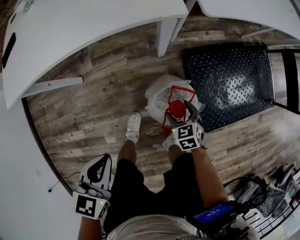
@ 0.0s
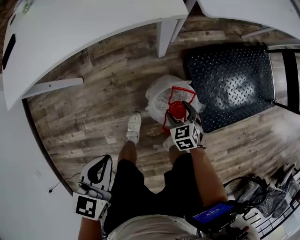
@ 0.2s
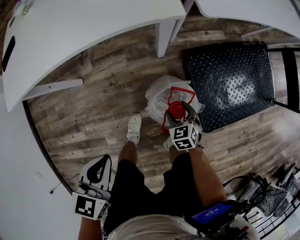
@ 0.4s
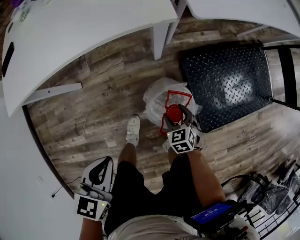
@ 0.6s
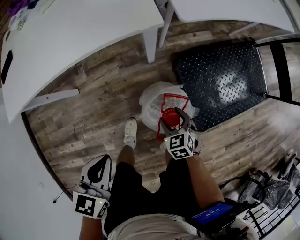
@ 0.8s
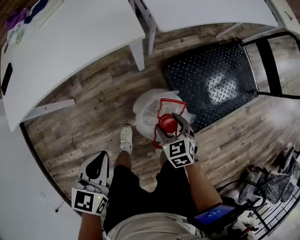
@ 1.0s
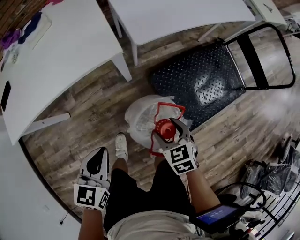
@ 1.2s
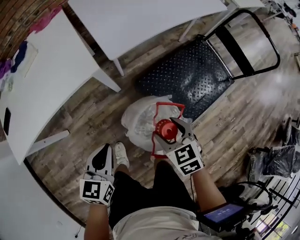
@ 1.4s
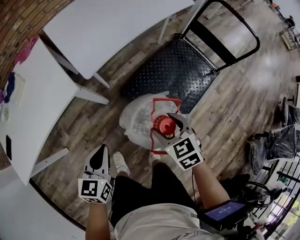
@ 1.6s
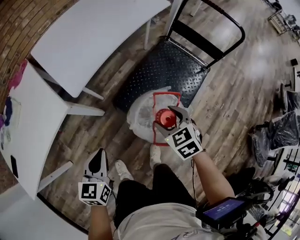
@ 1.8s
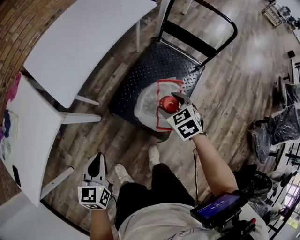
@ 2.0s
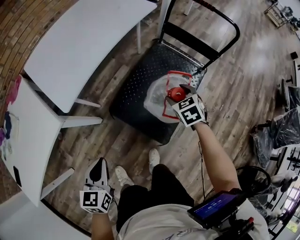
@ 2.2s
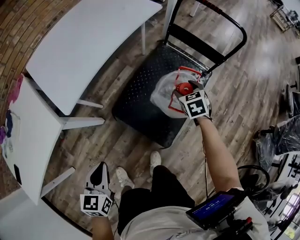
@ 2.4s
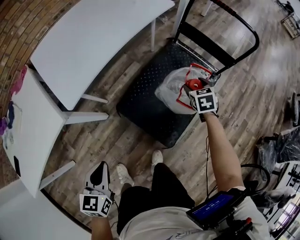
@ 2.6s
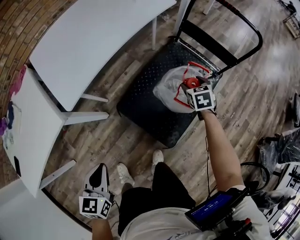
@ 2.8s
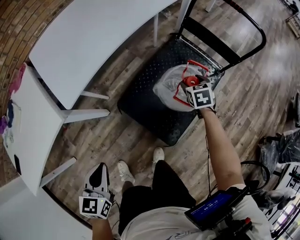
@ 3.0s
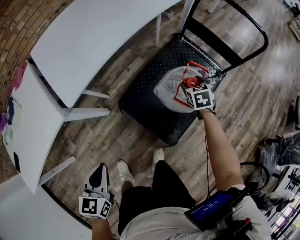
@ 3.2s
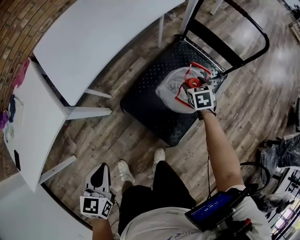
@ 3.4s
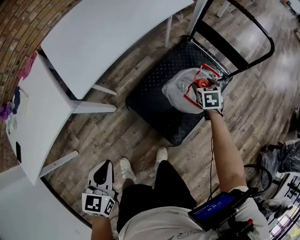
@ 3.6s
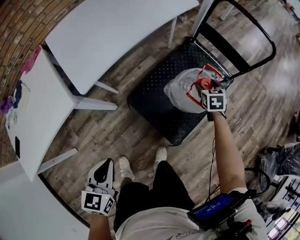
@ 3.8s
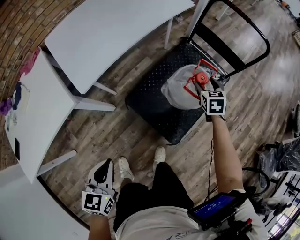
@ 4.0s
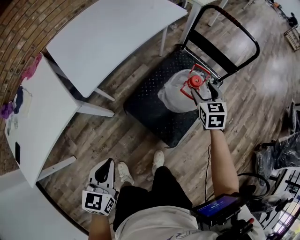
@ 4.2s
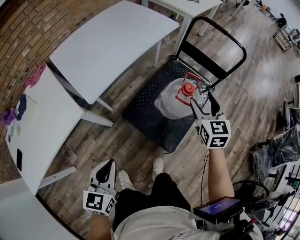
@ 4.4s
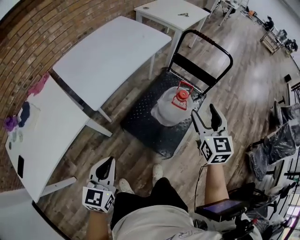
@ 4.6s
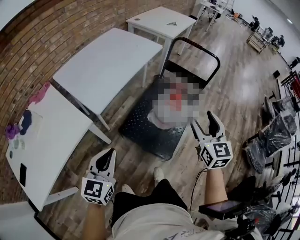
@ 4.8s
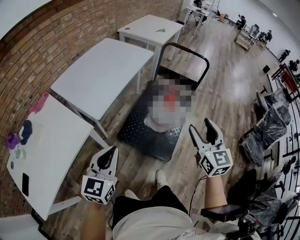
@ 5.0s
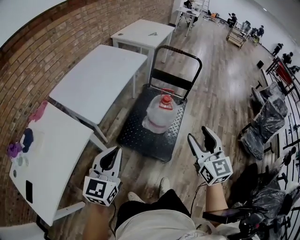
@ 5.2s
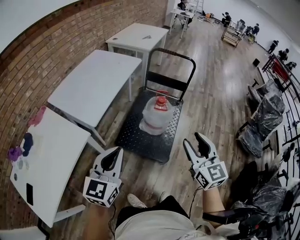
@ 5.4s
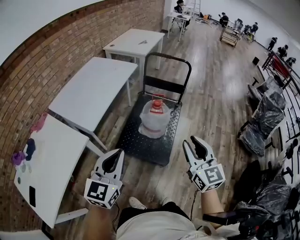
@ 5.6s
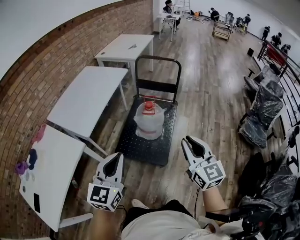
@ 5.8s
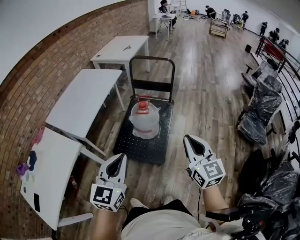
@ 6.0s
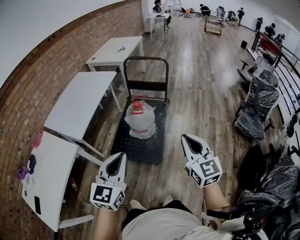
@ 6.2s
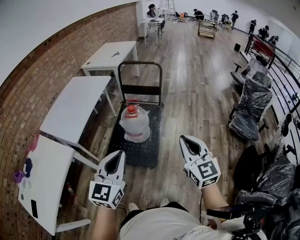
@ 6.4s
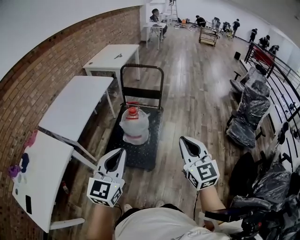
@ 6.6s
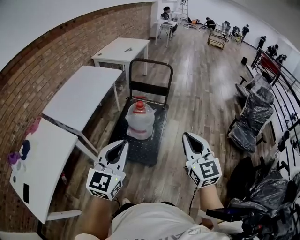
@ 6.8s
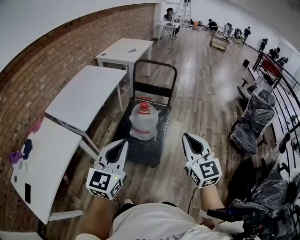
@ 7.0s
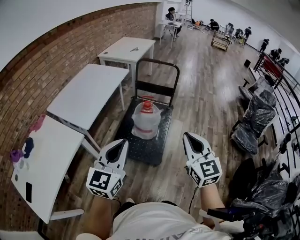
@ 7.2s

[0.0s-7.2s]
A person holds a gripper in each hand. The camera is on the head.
0.0s to 1.4s: The left gripper travels to the right, forward and upward by about 15 cm. The right gripper travels upward and to the right by some 30 cm.
1.4s to 2.8s: The right gripper travels to the right and forward by some 40 cm, and changes its angle by approximately 30 degrees; the left gripper goes some 15 cm to the right and forward.
2.8s to 4.4s: The right gripper goes about 30 cm upward and backward, and swivels approximately 30 degrees. The left gripper goes some 10 cm upward.
4.4s to 5.8s: The left gripper moves upward and to the right, approximately 20 cm, and turns by approximately 30 degrees; the right gripper shifts some 40 cm backward and upward, turns by some 20 degrees, and closes.
5.8s to 7.2s: The left gripper moves approximately 10 cm to the right and comes back. Meanwhile the right gripper travels to the right and back again, roughly 10 cm each way.

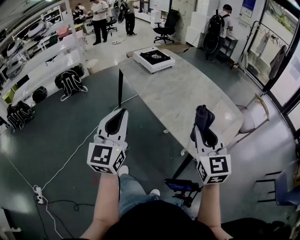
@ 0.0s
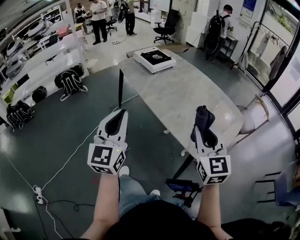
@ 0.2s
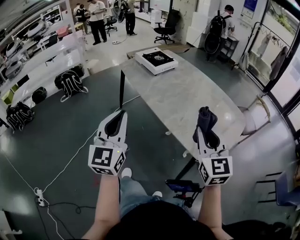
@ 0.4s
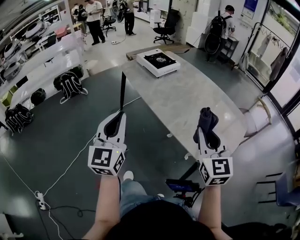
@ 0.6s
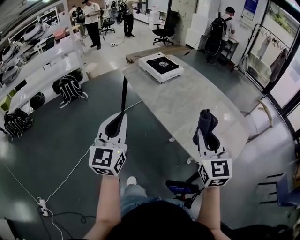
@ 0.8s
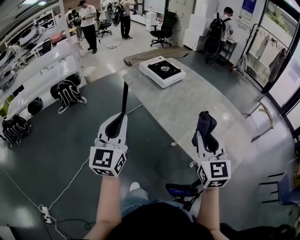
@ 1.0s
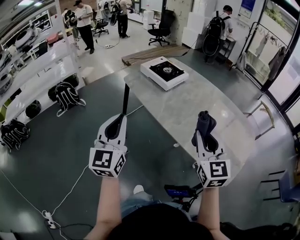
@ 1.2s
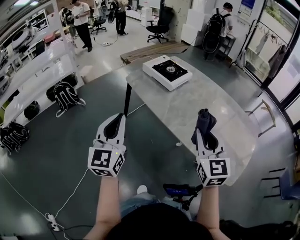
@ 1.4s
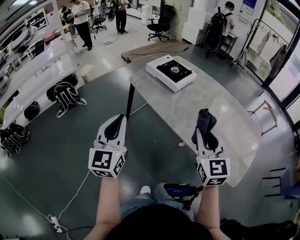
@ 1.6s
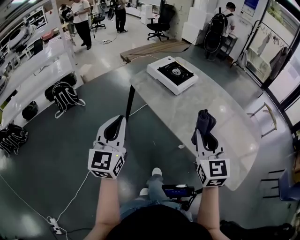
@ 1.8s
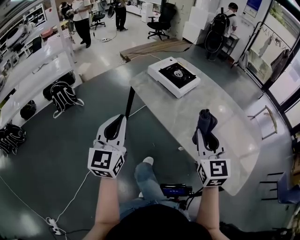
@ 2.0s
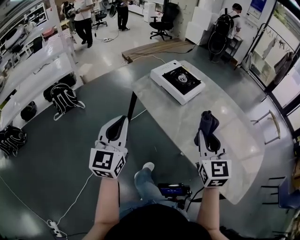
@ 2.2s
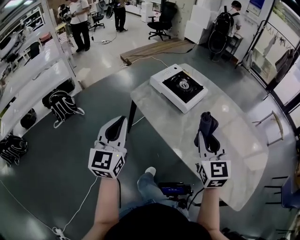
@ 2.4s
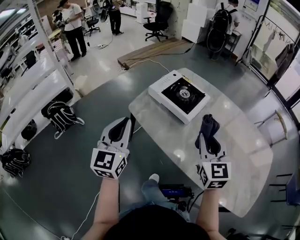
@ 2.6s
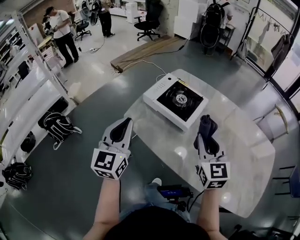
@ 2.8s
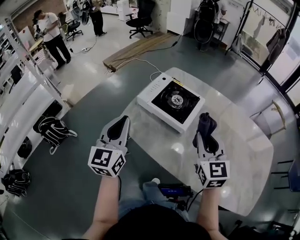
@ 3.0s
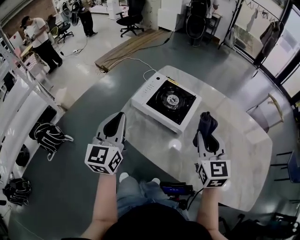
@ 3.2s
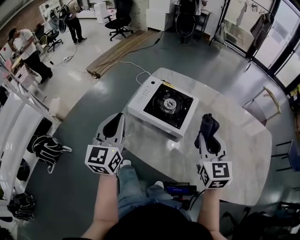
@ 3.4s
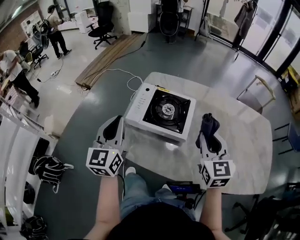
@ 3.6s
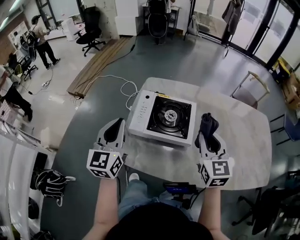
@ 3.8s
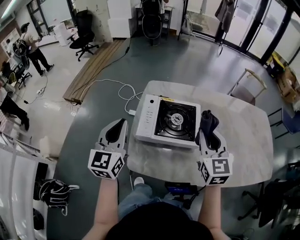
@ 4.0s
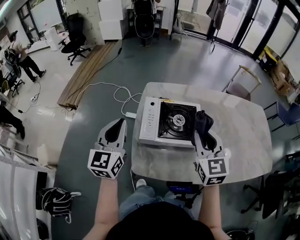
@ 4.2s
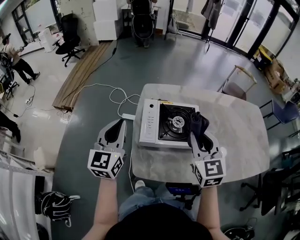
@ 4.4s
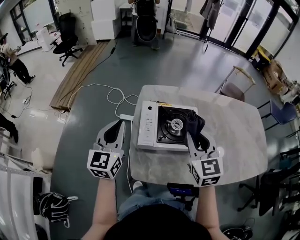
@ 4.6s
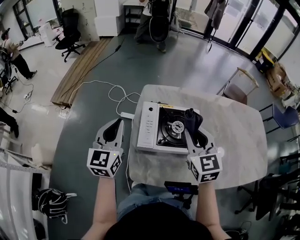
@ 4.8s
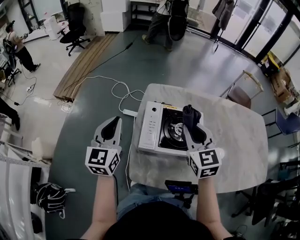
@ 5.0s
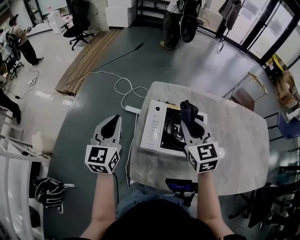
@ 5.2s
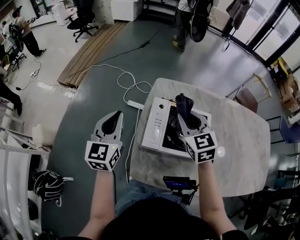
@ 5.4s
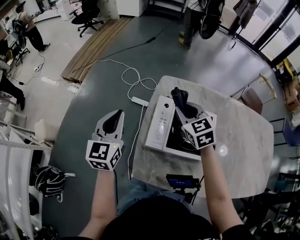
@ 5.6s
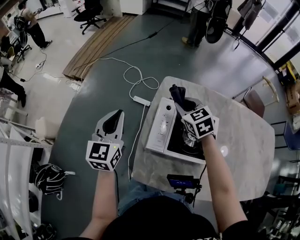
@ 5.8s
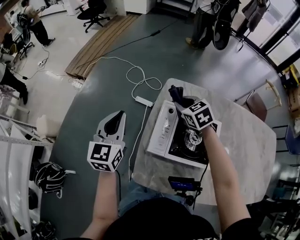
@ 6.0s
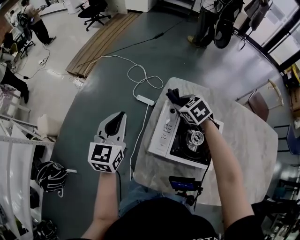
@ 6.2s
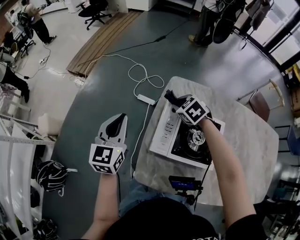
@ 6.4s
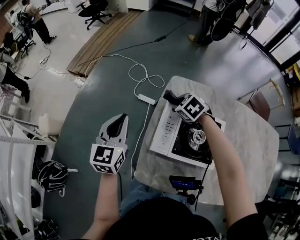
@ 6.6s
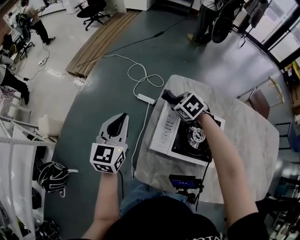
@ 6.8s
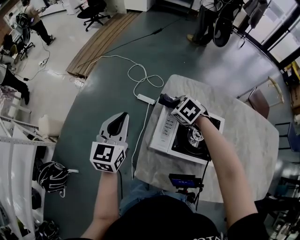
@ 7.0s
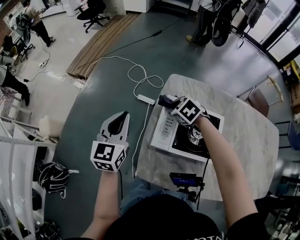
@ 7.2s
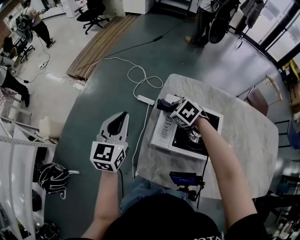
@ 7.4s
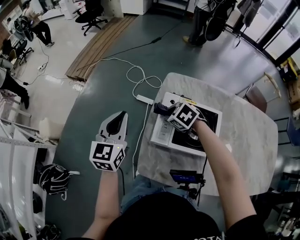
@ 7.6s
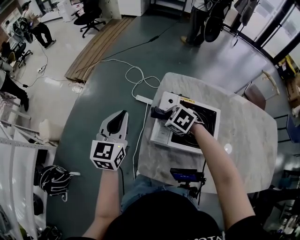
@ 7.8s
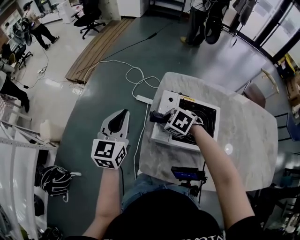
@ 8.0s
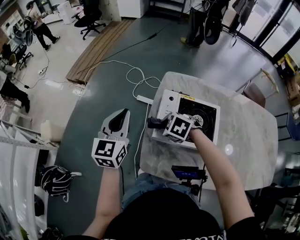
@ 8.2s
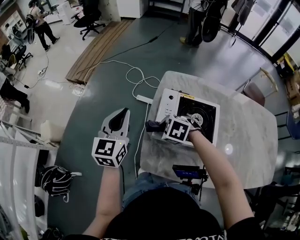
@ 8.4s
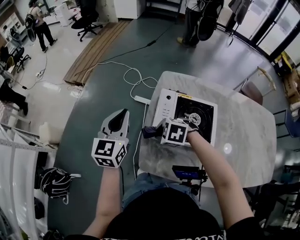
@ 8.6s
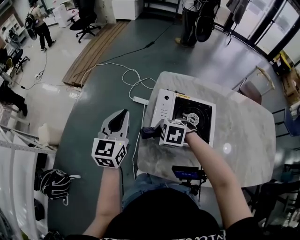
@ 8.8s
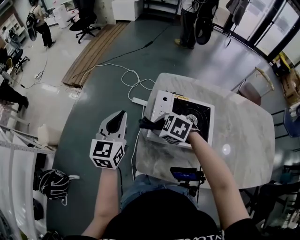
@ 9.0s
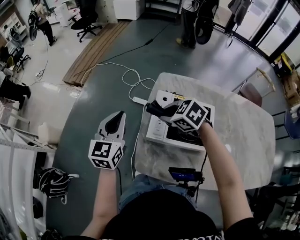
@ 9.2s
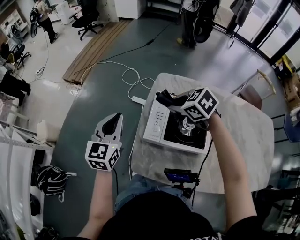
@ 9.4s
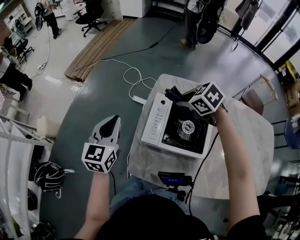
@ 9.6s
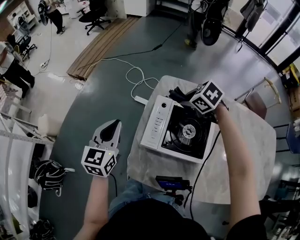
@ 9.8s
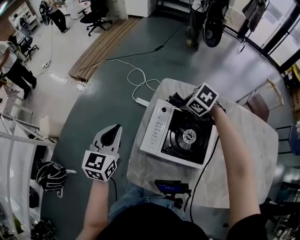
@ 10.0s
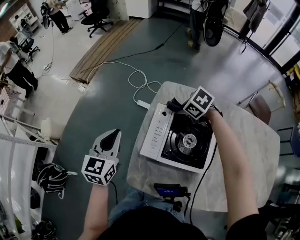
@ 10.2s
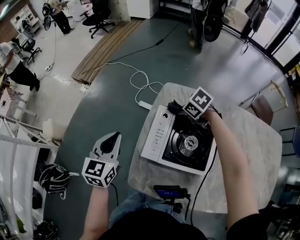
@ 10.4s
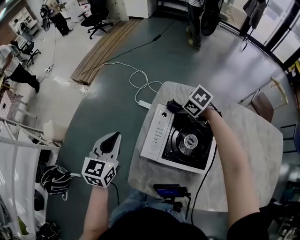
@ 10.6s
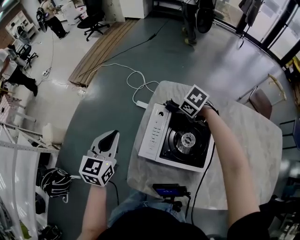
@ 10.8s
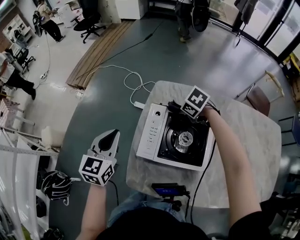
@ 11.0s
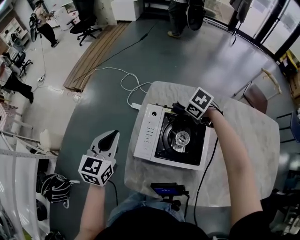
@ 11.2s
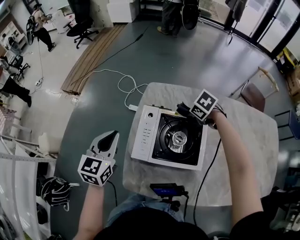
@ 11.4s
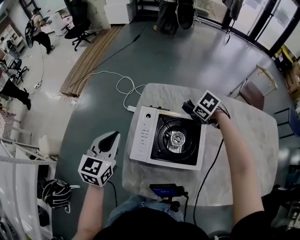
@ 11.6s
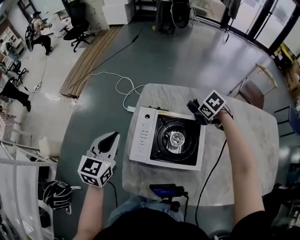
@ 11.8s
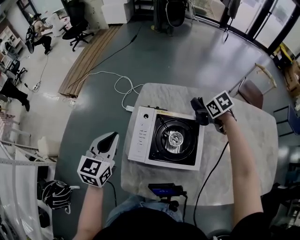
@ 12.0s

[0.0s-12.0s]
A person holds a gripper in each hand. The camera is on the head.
0.0s to 1.6s: The grippers both shift to the left and forward by about 30 cm.
1.6s to 3.0s: Both grippers travel together forward, about 35 cm.
3.0s to 4.4s: The left gripper shifts by roughly 25 cm, and turns by approximately 30 degrees, while the right gripper changes place by approximately 20 cm, and changes its angle by some 30 degrees.
4.4s to 6.0s: The left gripper travels forward, downward and to the left by roughly 10 cm; the right gripper heads forward, downward and to the left, covering approximately 30 cm, and turns by some 40 degrees.
6.0s to 7.6s: The right gripper goes some 10 cm to the left and backward, and rotates about 20 degrees.
7.6s to 9.0s: The right gripper moves to the left and backward, about 10 cm.
9.0s to 10.4s: The right gripper moves to the right and forward, about 20 cm.
10.4s to 12.0s: The left gripper ends up roughly 5 cm from where it was; the right gripper shifts by some 20 cm, and changes its angle by roughly 30 degrees.

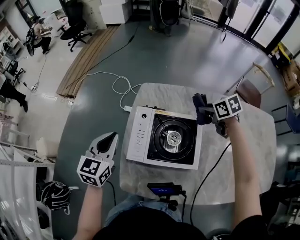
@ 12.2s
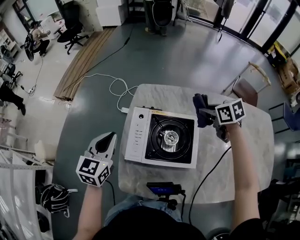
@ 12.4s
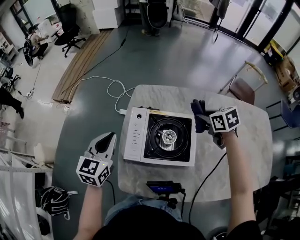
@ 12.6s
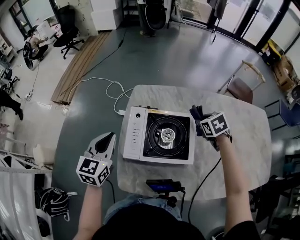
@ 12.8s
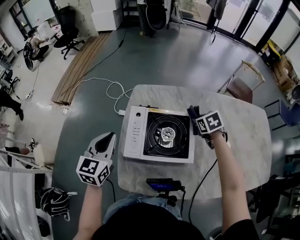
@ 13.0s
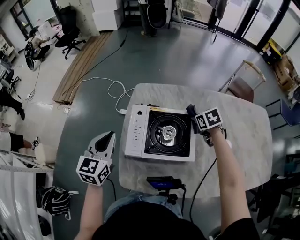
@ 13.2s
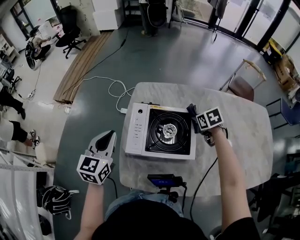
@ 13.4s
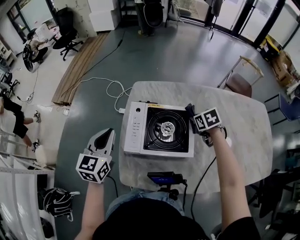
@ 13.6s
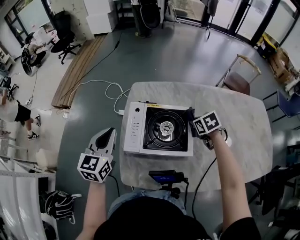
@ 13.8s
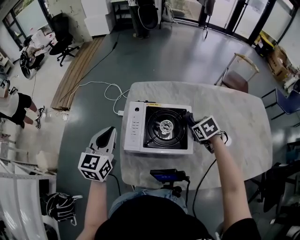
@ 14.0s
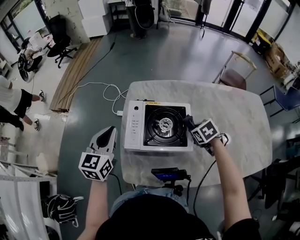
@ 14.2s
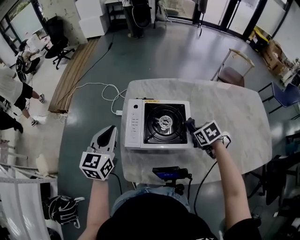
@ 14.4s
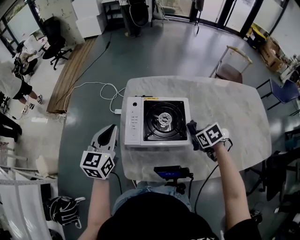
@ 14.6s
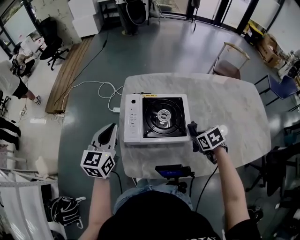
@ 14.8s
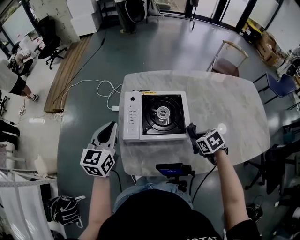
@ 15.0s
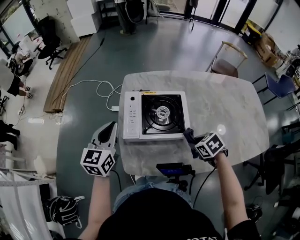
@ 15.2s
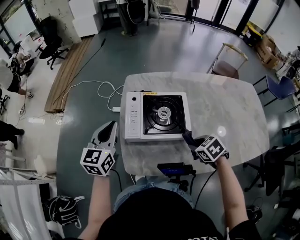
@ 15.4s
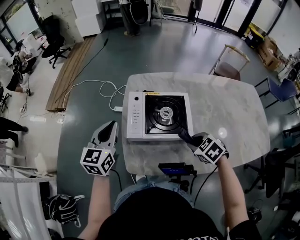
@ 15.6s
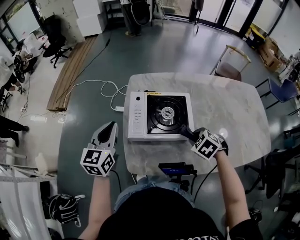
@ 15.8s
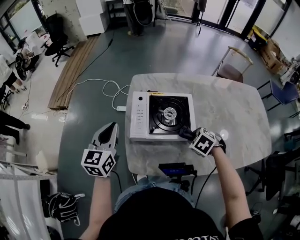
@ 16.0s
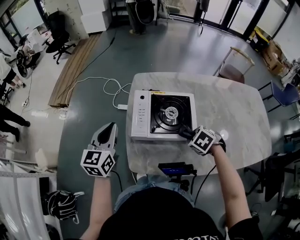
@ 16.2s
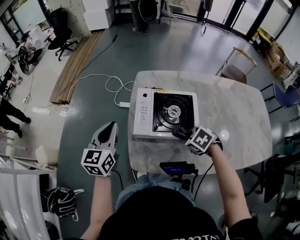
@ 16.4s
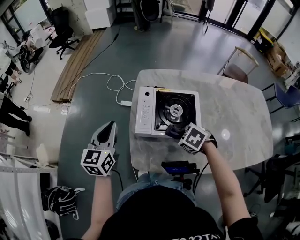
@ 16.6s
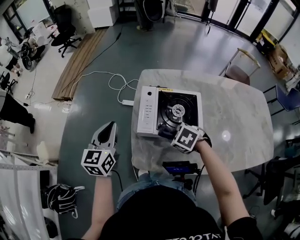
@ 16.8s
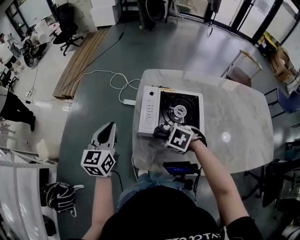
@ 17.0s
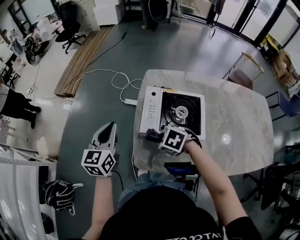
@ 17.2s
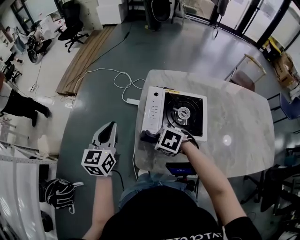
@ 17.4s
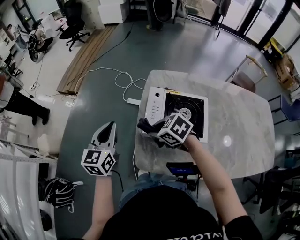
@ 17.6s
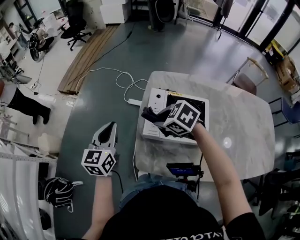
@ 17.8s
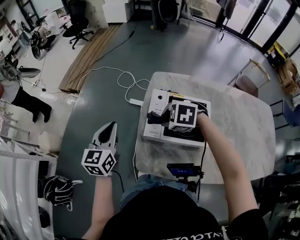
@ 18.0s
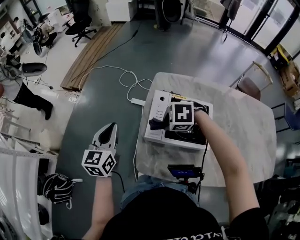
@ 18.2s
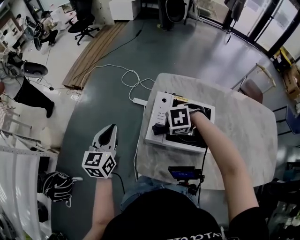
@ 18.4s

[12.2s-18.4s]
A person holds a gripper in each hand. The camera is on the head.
12.2s to 13.8s: The right gripper travels backward by about 10 cm.
13.8s to 15.4s: The right gripper heads backward, covering some 20 cm.
15.4s to 16.8s: The left gripper moves some 5 cm; the right gripper changes place by roughly 15 cm, and rotates some 30 degrees.
16.8s to 18.4s: The right gripper moves about 10 cm upward and comes back, and swivels approximately 40 degrees.
